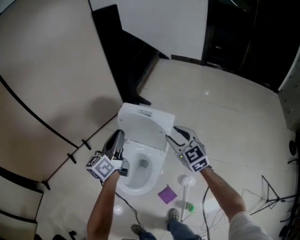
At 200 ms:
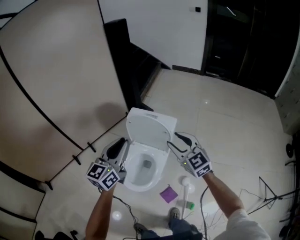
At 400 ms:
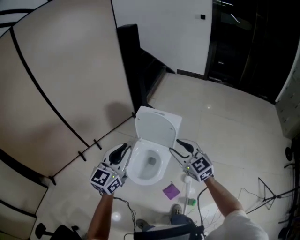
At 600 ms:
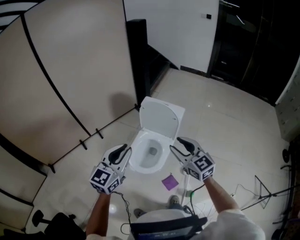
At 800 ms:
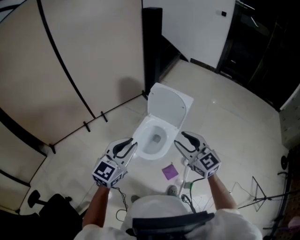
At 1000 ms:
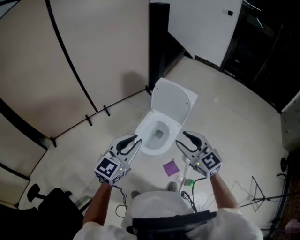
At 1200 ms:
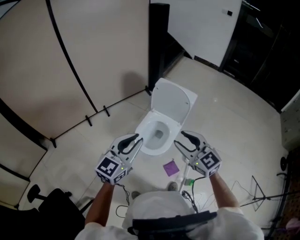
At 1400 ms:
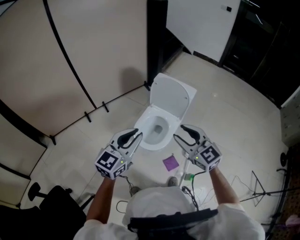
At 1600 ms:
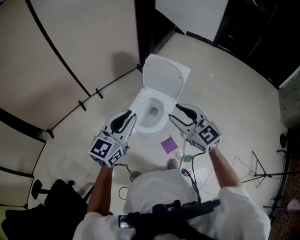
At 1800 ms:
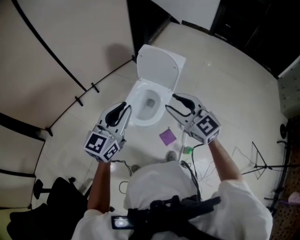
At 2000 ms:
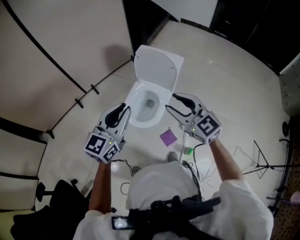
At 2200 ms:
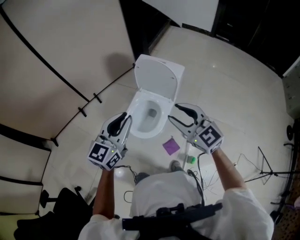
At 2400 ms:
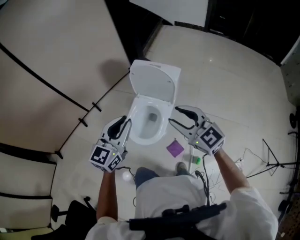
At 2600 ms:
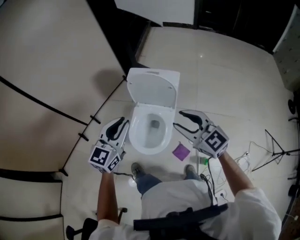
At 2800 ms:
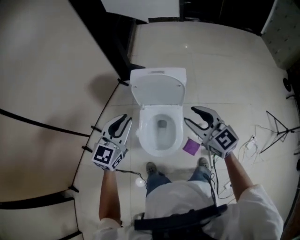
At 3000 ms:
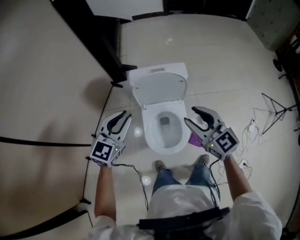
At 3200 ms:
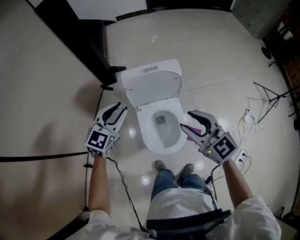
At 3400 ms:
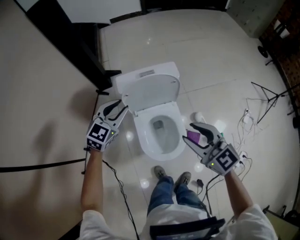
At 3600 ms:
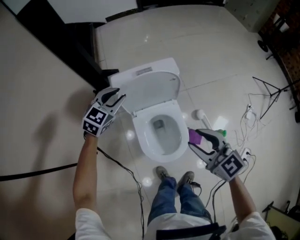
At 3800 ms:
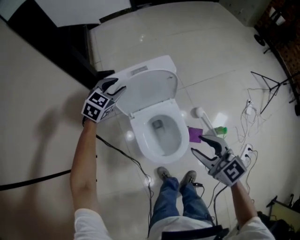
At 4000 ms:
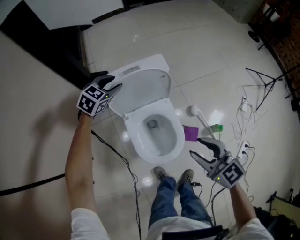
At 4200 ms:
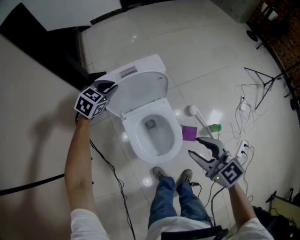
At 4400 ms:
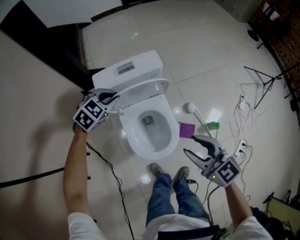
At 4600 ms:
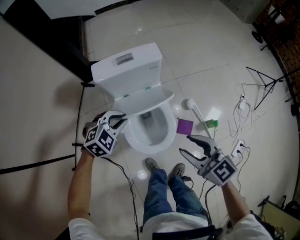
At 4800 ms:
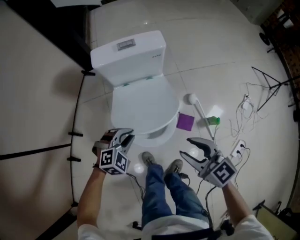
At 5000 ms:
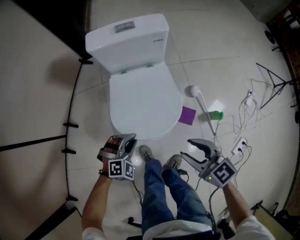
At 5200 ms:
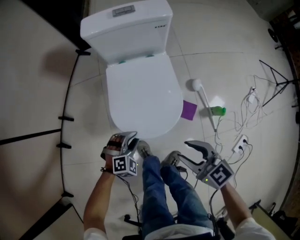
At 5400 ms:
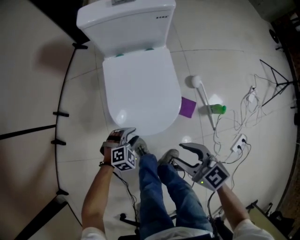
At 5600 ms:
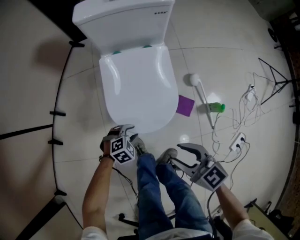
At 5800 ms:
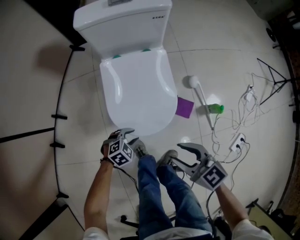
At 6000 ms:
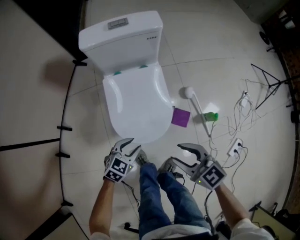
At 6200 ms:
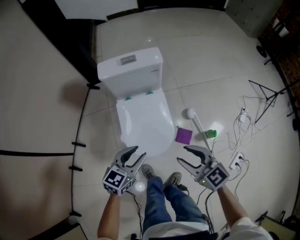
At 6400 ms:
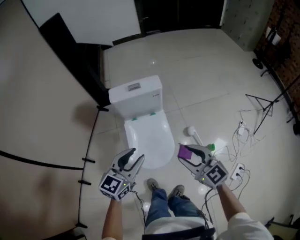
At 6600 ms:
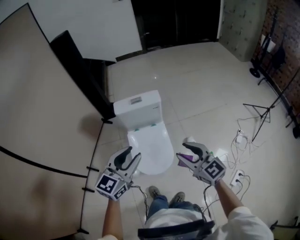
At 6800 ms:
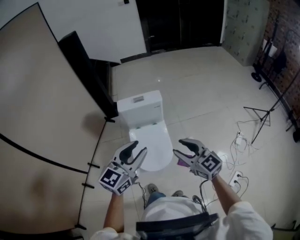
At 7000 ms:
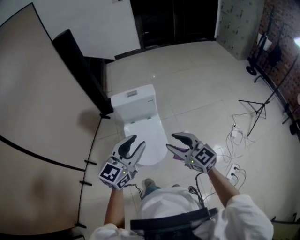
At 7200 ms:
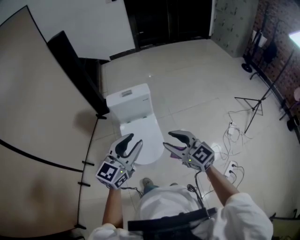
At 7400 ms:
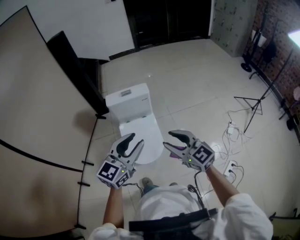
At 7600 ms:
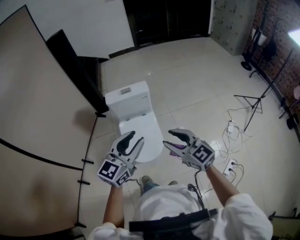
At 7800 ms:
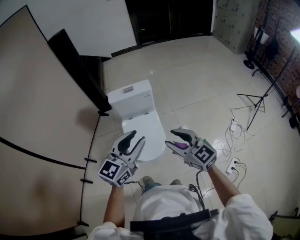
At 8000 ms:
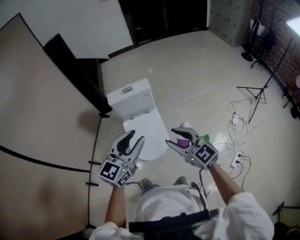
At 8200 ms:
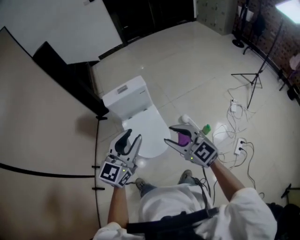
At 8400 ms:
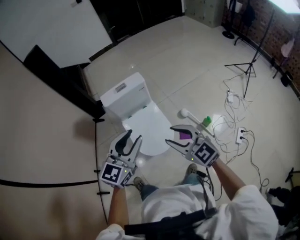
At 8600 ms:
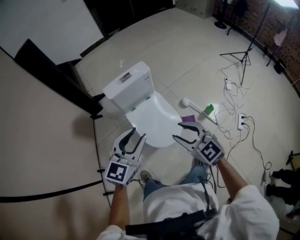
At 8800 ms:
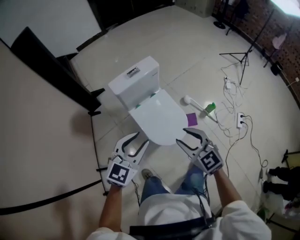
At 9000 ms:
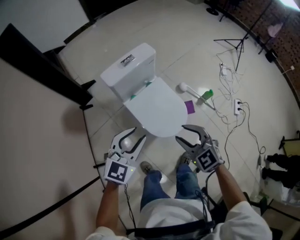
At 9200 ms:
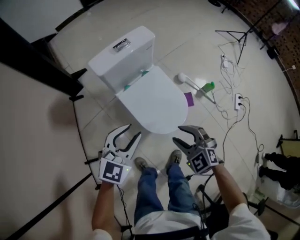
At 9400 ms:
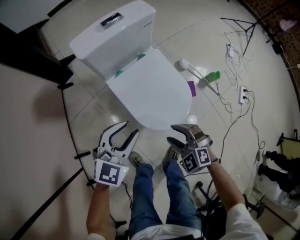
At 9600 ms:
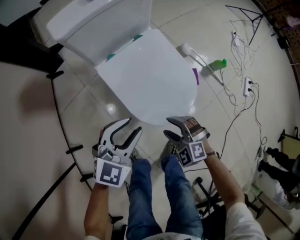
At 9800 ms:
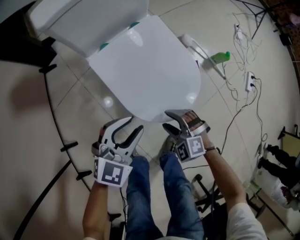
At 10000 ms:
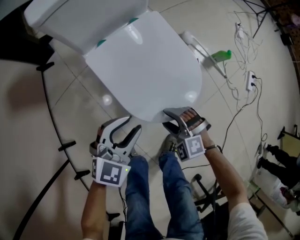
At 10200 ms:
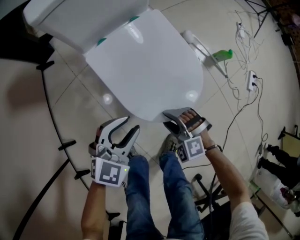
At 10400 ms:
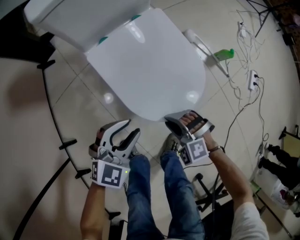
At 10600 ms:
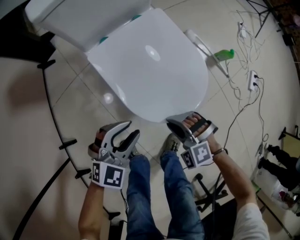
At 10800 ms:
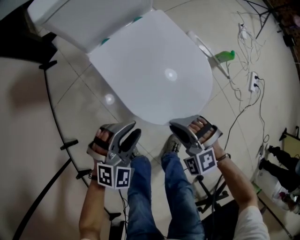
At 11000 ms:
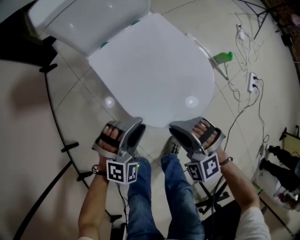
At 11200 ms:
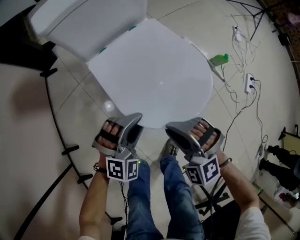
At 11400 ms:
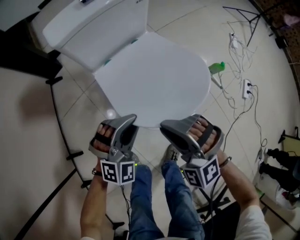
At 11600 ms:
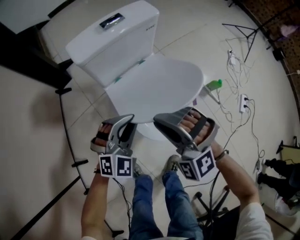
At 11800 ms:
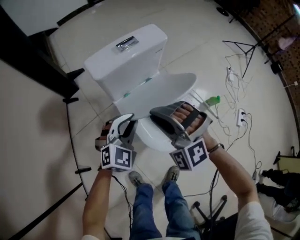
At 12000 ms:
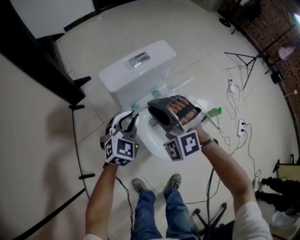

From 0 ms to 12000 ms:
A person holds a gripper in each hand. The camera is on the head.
From 0 ms to 1600 ms: The left gripper shifts approximately 35 cm backward, and turns by roughly 30 degrees. The right gripper moves backward and to the left, some 35 cm.
From 1600 ms to 3000 ms: The right gripper ends up roughly 20 cm from where it was, and turns by approximately 40 degrees. Meanwhile the left gripper changes place by approximately 35 cm, and changes its angle by some 40 degrees.
From 3000 ms to 4400 ms: The left gripper travels downward and forward by about 25 cm, points its fingers about 30 degrees further downward, and opens, then closes once more. The right gripper travels downward and backward by approximately 15 cm.
From 4400 ms to 6000 ms: The left gripper moves backward and downward, roughly 40 cm, changes its angle by some 30 degrees, and opens its fingers; the right gripper shifts about 20 cm downward and backward.
From 6000 ms to 7600 ms: The left gripper is displaced upward by approximately 50 cm, and points its fingers roughly 40 degrees further upward; the right gripper heads upward, covering some 30 cm, and turns by roughly 20 degrees.
From 7600 ms to 9000 ms: The right gripper ends up approximately 30 cm from where it was, and rotates approximately 40 degrees. Meanwhile the left gripper shifts by about 30 cm, and swivels about 30 degrees.
From 9000 ms to 10400 ms: The grippers both shift downward by some 40 cm. The right gripper swivels about 40 degrees.
From 10400 ms to 12000 ms: The grippers both shift upward and forward by about 35 cm. The right gripper swivels approximately 30 degrees; the left gripper rotates some 20 degrees, and closes up.

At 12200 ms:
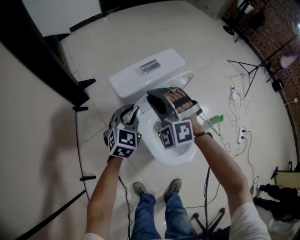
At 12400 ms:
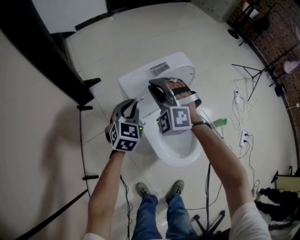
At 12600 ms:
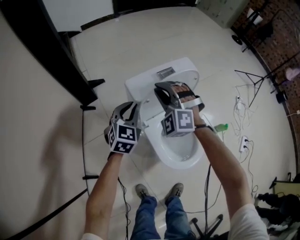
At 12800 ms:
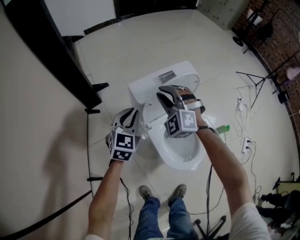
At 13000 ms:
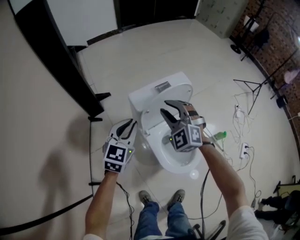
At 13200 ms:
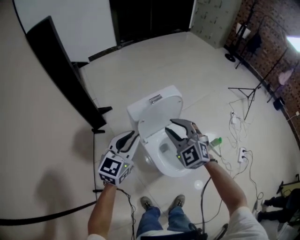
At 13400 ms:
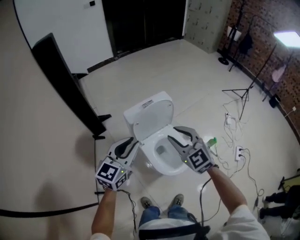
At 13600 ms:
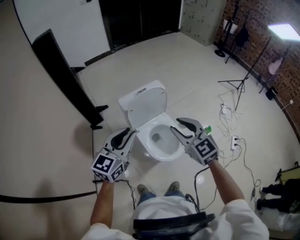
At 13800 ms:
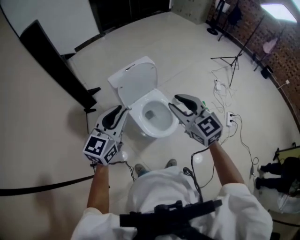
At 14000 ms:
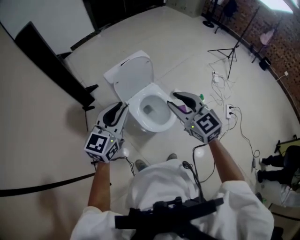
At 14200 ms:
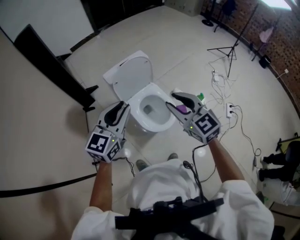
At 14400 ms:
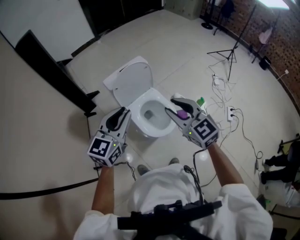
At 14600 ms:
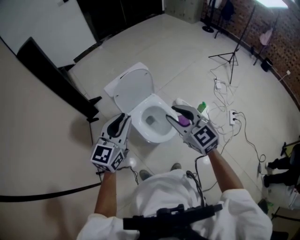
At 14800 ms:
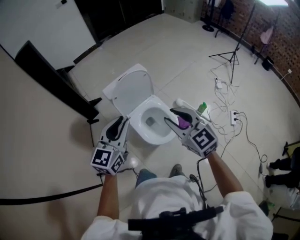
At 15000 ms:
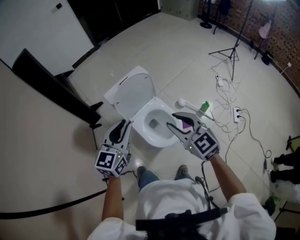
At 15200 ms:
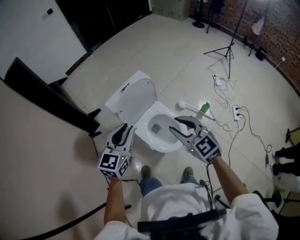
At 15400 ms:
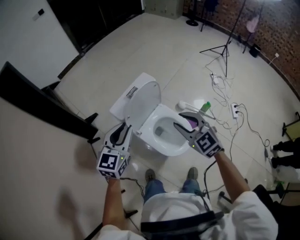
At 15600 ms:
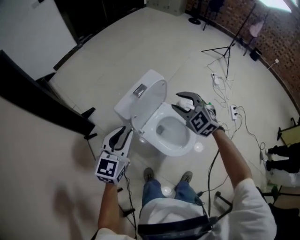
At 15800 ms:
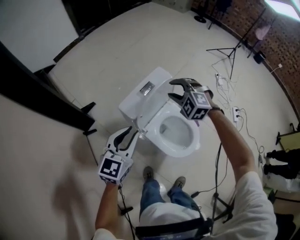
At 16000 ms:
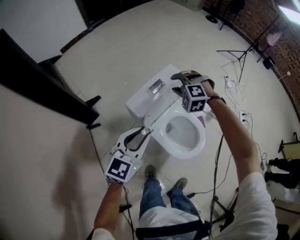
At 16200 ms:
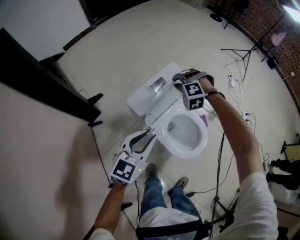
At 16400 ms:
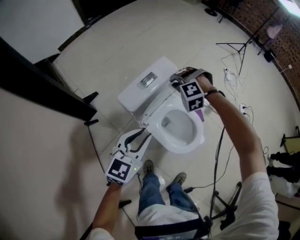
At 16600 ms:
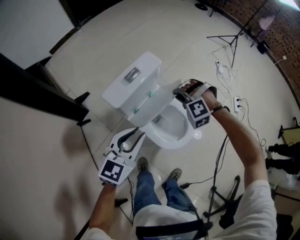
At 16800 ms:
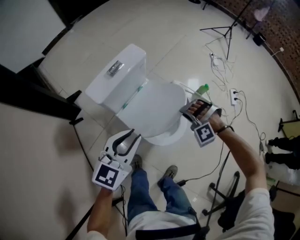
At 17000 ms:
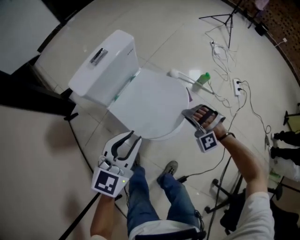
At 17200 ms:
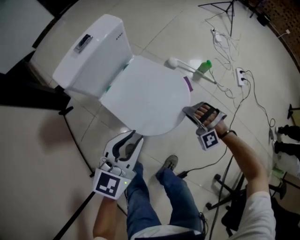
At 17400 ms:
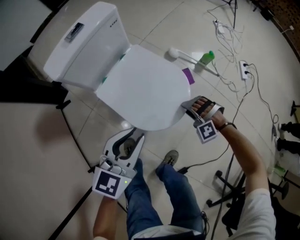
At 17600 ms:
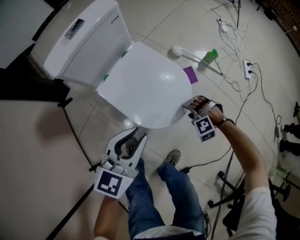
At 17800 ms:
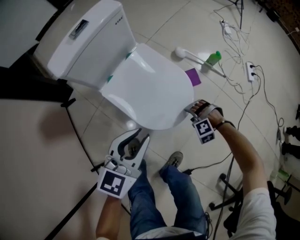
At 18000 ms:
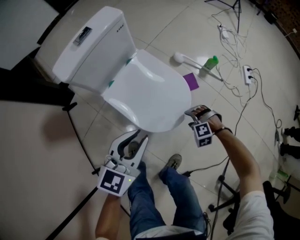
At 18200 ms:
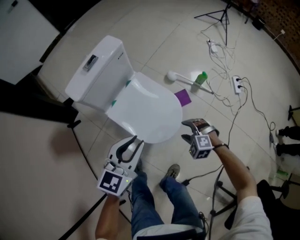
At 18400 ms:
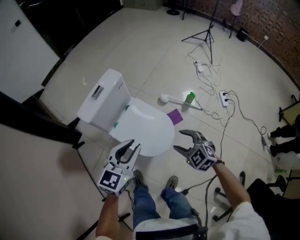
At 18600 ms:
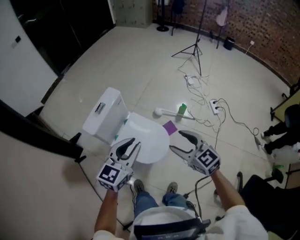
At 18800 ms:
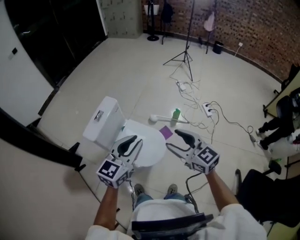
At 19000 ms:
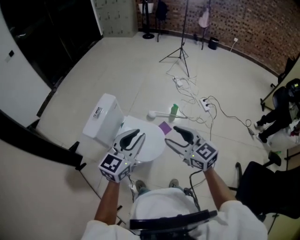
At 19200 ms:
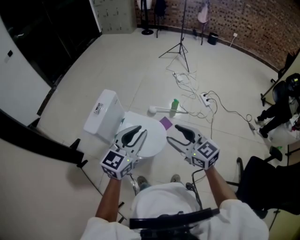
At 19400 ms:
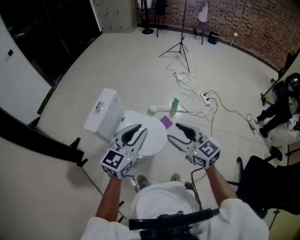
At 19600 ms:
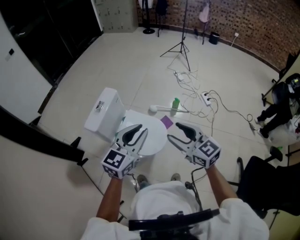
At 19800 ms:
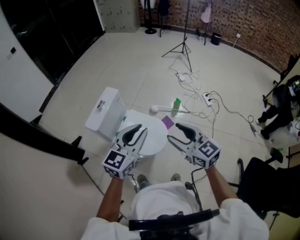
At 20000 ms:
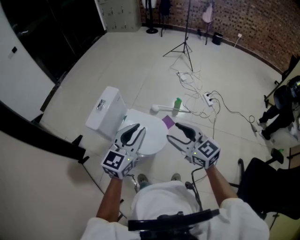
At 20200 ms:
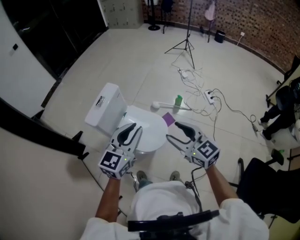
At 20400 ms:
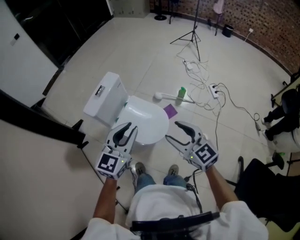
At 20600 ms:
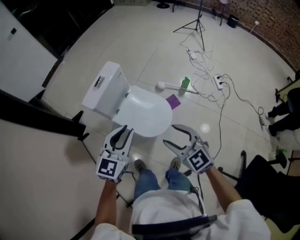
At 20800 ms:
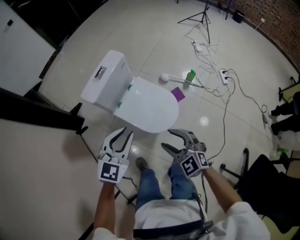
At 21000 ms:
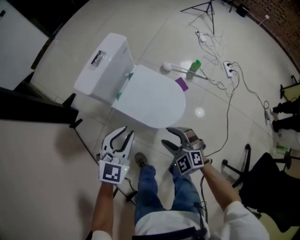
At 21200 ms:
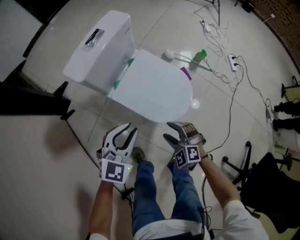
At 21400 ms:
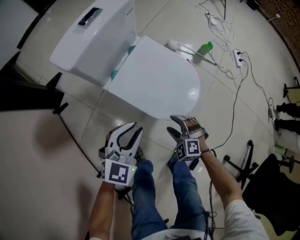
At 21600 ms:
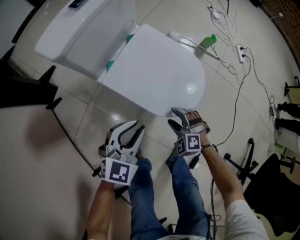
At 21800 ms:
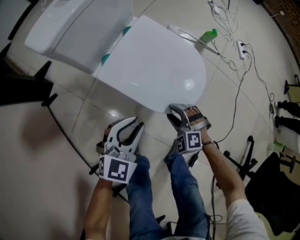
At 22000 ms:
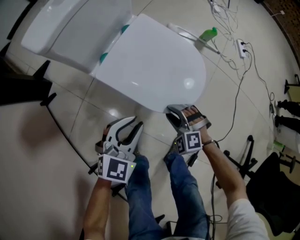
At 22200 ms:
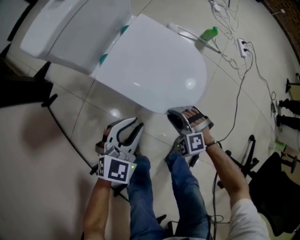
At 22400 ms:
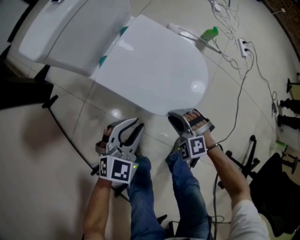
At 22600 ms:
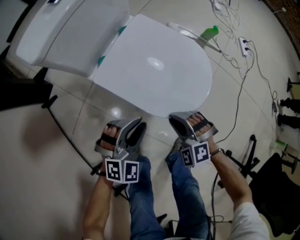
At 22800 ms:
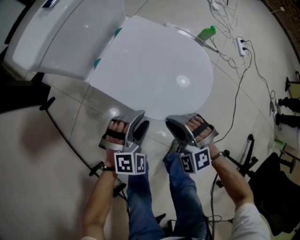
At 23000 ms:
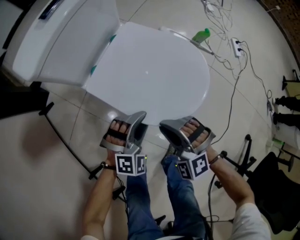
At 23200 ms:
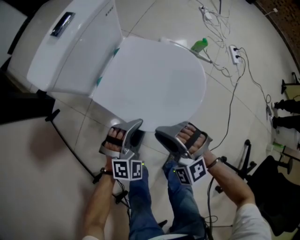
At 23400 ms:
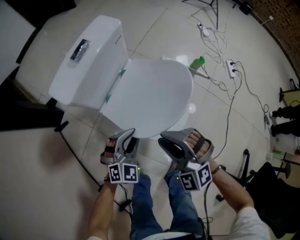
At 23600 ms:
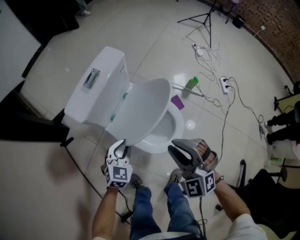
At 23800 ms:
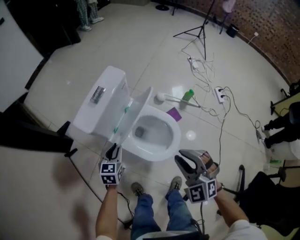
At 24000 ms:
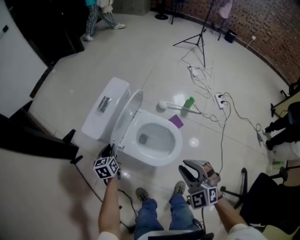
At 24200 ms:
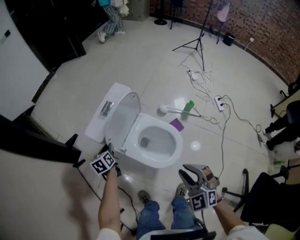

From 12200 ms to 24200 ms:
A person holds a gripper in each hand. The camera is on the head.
From 12200 ms to 13800 ms: The right gripper goes approximately 40 cm backward, upward and to the right, and rolls clockwise, seen from behind, by about 60 degrees, while the left gripper shifts about 40 cm upward and backward, and rotates some 30 degrees.
From 13800 ms to 15200 ms: The right gripper goes some 5 cm downward. Meanwhile the left gripper heads forward and downward, covering about 10 cm.
From 15200 ms to 16600 ms: The left gripper shifts roughly 10 cm downward, and reaches about 15 cm to the left, then returns. The right gripper is displaced forward and downward by roughly 25 cm, and rotates around the line of its fingers by about 70 degrees, counterclockwise from behind.
From 16600 ms to 18200 ms: The left gripper shifts about 20 cm to the right and downward. The right gripper goes approximately 35 cm downward, backward and to the right, twists some 40 degrees clockwise, seen from behind, and opens up.
From 18200 ms to 19800 ms: The left gripper heads upward, covering roughly 25 cm; the right gripper is displaced upward by about 40 cm, and points its fingers approximately 50 degrees further upward.
From 19800 ms to 21200 ms: The right gripper moves downward, approximately 40 cm, and points its fingers roughly 30 degrees further downward, while the left gripper goes about 35 cm downward and to the left, and rotates roughly 20 degrees.
From 21200 ms to 22600 ms: The left gripper shifts approximately 20 cm downward, and rotates some 20 degrees. The right gripper travels downward by approximately 10 cm, and closes up.
From 22600 ms to 24200 ms: The left gripper travels to the left, forward and upward by approximately 30 cm, twists about 80 degrees counterclockwise, seen from behind, and opens, then closes once more, while the right gripper is displaced upward by roughly 35 cm, and turns by some 30 degrees.
